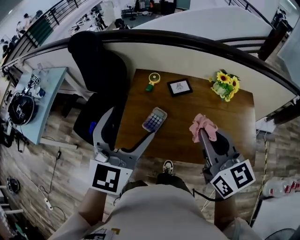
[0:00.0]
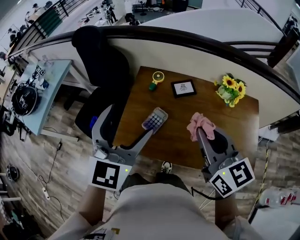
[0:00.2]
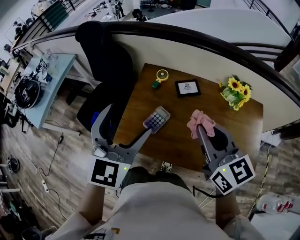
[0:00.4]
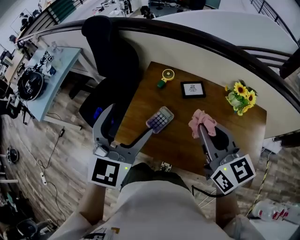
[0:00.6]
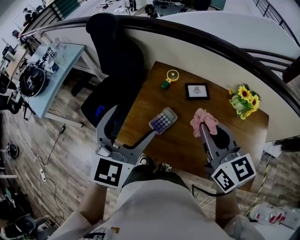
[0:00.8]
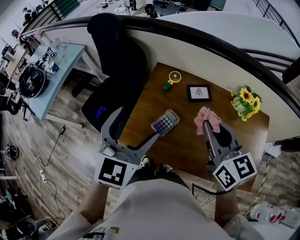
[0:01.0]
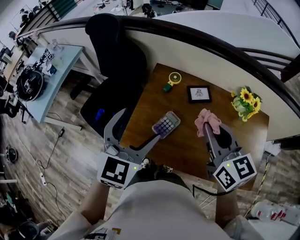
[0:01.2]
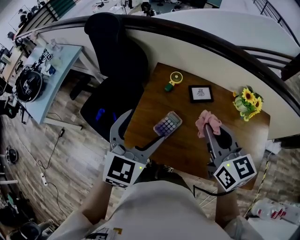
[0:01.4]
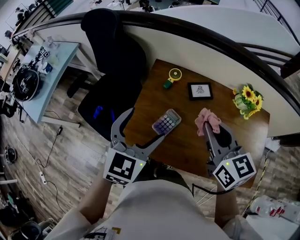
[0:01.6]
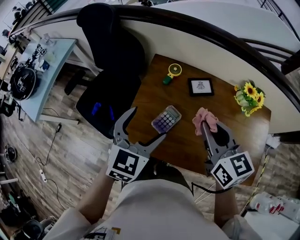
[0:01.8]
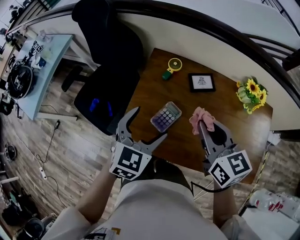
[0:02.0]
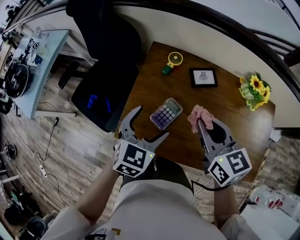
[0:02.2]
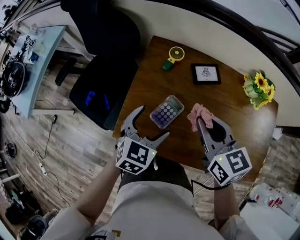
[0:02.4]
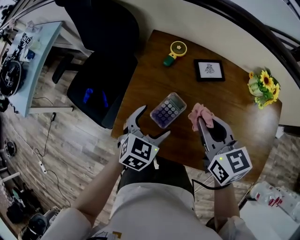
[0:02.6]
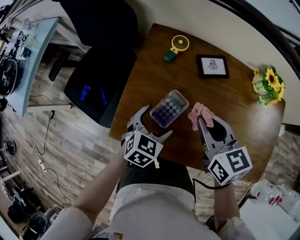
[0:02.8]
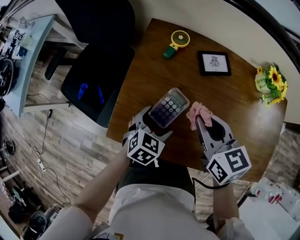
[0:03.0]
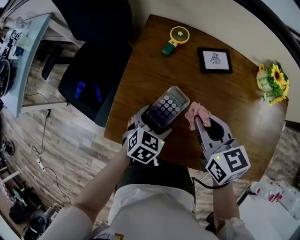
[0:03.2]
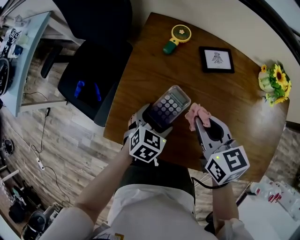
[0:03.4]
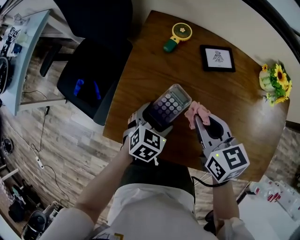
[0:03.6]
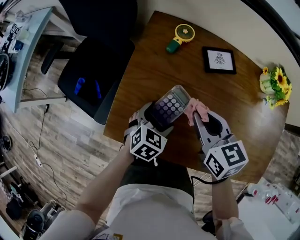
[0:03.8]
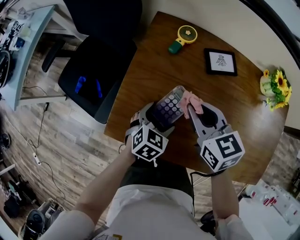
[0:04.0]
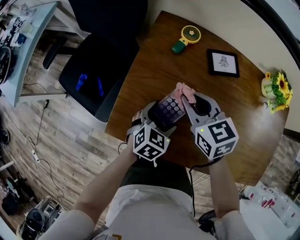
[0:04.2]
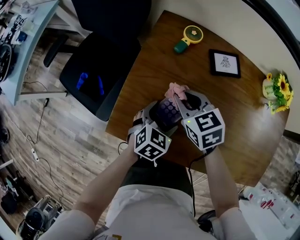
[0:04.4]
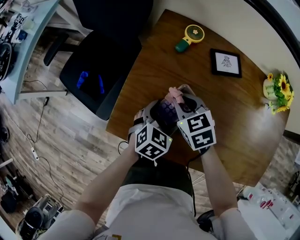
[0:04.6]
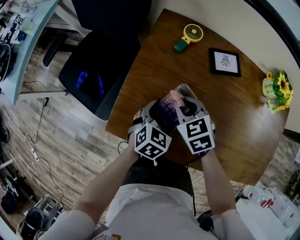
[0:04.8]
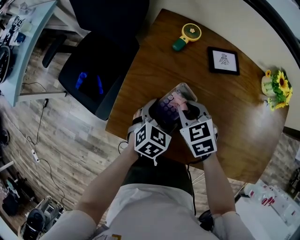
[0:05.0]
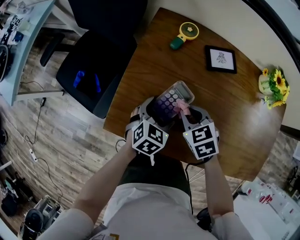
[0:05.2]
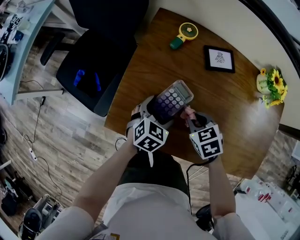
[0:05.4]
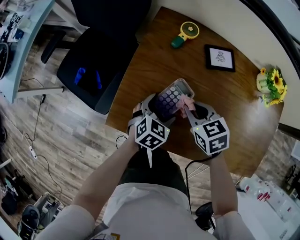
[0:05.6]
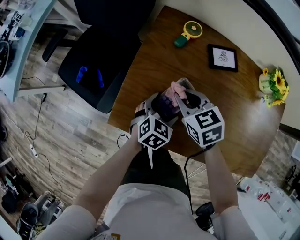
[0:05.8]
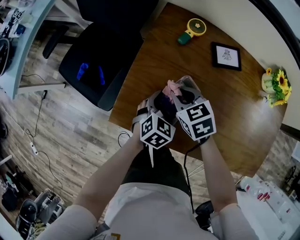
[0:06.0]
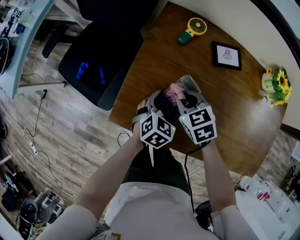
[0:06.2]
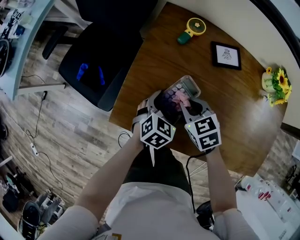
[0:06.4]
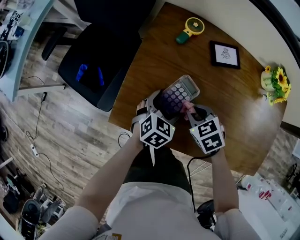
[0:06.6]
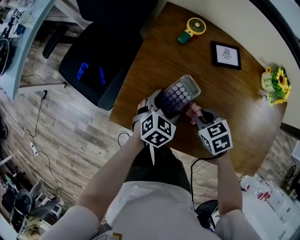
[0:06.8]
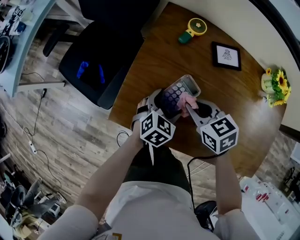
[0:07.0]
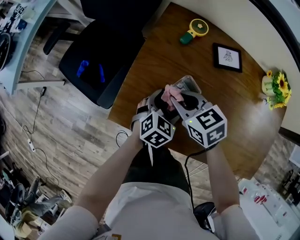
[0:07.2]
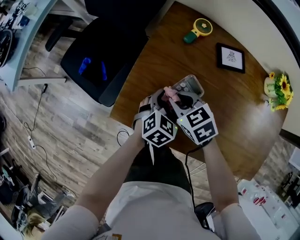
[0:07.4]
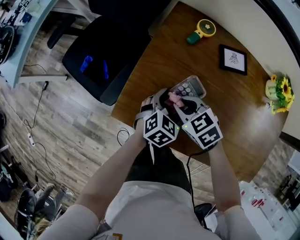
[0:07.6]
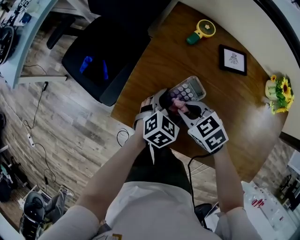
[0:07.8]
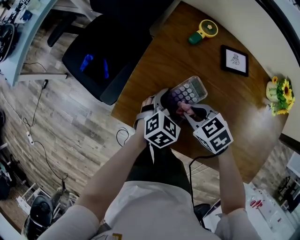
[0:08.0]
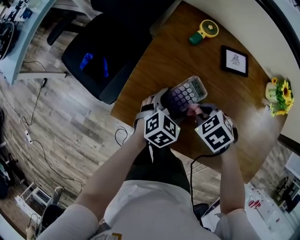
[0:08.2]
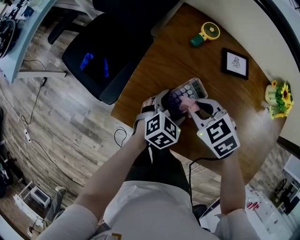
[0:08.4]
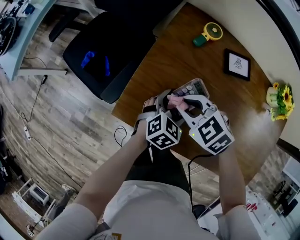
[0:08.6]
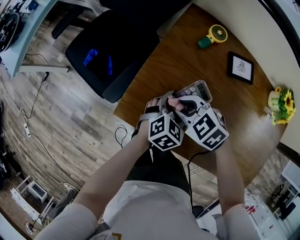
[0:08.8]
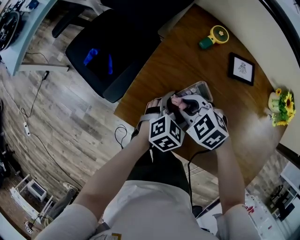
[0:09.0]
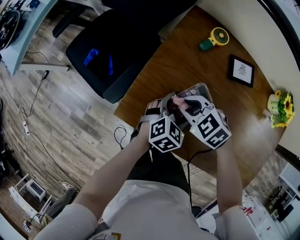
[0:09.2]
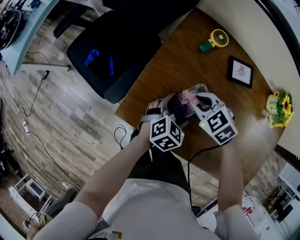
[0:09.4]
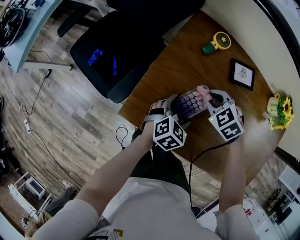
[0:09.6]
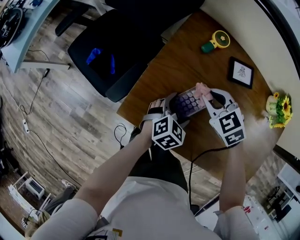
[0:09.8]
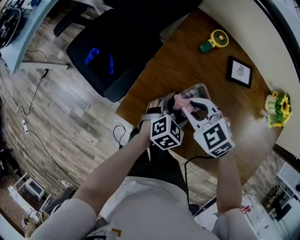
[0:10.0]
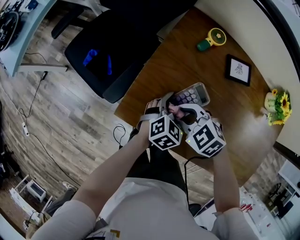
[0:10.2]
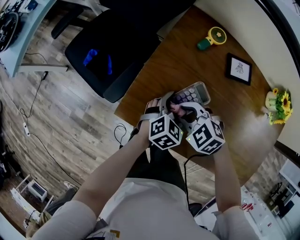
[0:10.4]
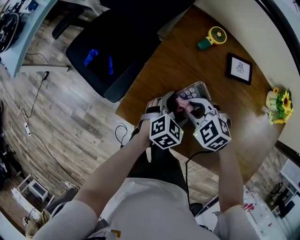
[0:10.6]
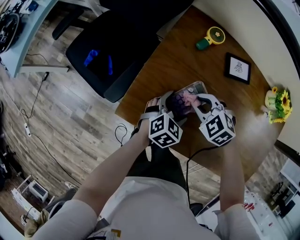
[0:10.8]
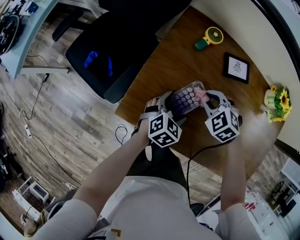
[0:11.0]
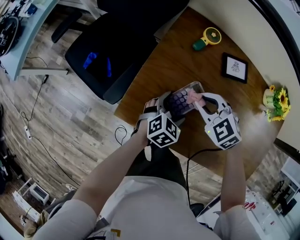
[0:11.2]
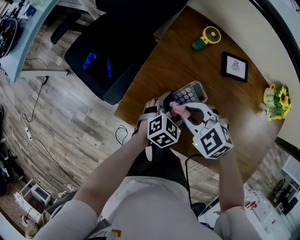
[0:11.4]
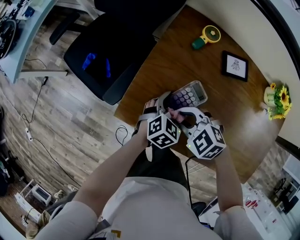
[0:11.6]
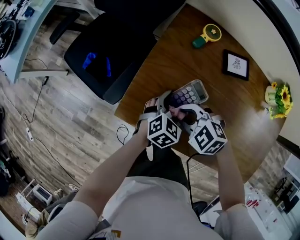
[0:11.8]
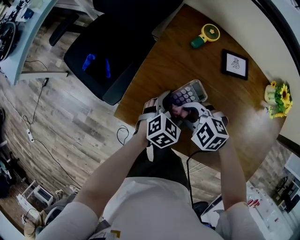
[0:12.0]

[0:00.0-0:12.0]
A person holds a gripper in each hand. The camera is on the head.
0:00.0 to 0:01.6: The left gripper moves downward and forward, roughly 15 cm. The right gripper goes approximately 15 cm forward and downward.
0:01.6 to 0:03.0: The left gripper travels downward by approximately 35 cm, and swivels approximately 30 degrees; the right gripper travels downward by approximately 20 cm.
0:03.0 to 0:04.4: The right gripper moves downward and to the left, about 15 cm, and rotates approximately 20 degrees.
0:04.4 to 0:06.0: The right gripper travels to the right and back again, approximately 10 cm each way.
0:06.0 to 0:07.6: The right gripper heads backward, covering roughly 5 cm, and reaches some 10 cm to the right, then returns.
0:07.6 to 0:09.0: The right gripper changes its angle by roughly 20 degrees.
0:09.0 to 0:10.4: The right gripper reaches roughly 10 cm to the right, then returns.
0:10.4 to 0:12.0: The right gripper reaches about 10 cm to the right, then returns.

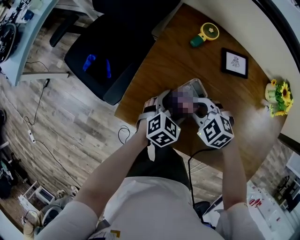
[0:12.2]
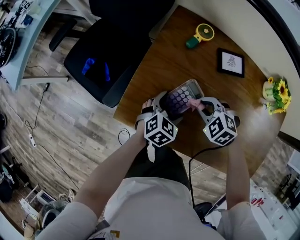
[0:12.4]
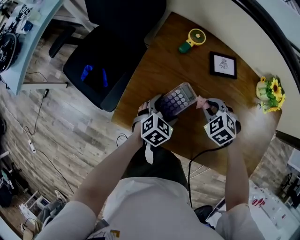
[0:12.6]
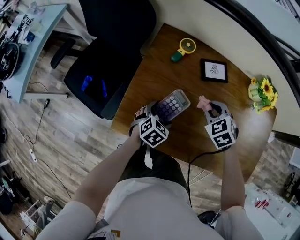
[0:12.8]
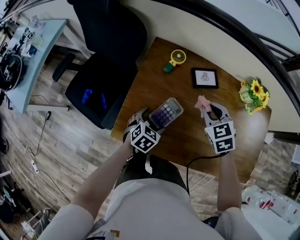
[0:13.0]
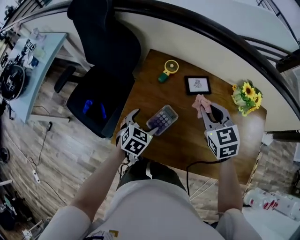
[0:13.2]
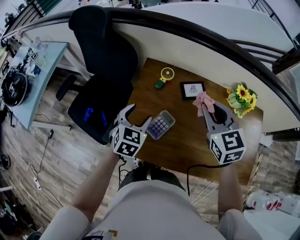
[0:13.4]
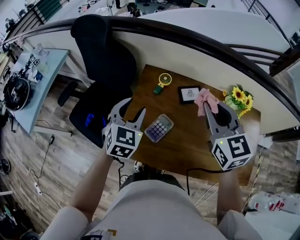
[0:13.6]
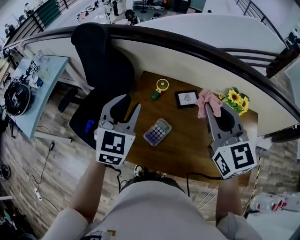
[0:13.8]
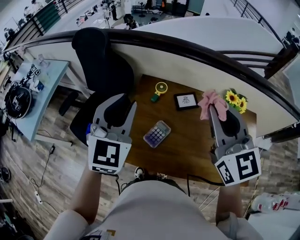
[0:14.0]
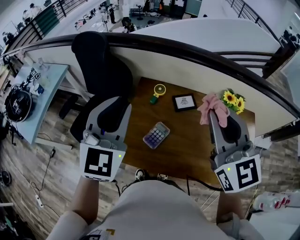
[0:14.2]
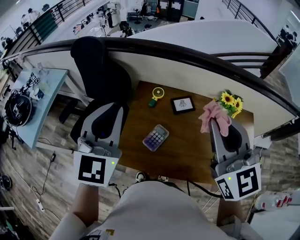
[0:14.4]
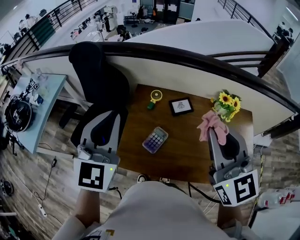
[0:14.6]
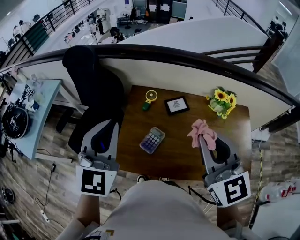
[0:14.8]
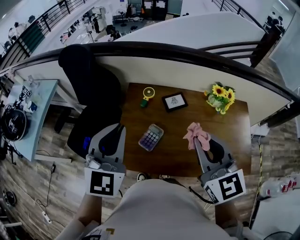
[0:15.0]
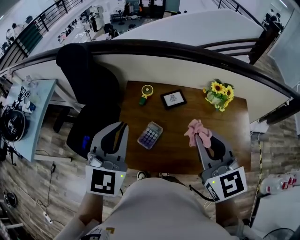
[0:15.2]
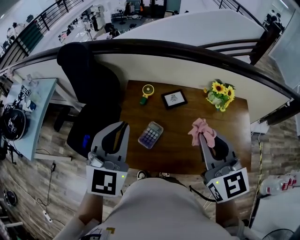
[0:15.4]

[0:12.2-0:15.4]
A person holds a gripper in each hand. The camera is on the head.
0:12.2 to 0:13.8: The grippers both shift upward by approximately 40 cm. The right gripper points its fingers approximately 50 degrees further upward, while the left gripper rotates about 40 degrees, and closes up.
0:13.8 to 0:15.4: The right gripper shifts about 10 cm backward; the left gripper moves backward and upward, some 10 cm.

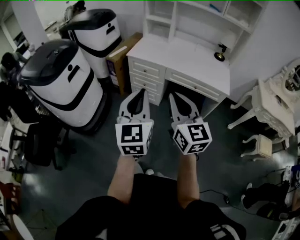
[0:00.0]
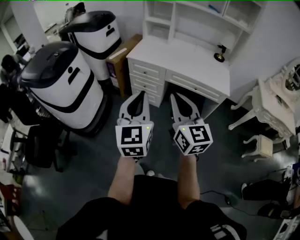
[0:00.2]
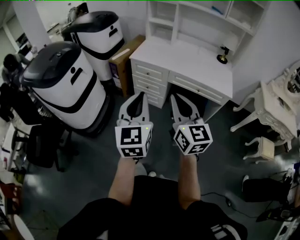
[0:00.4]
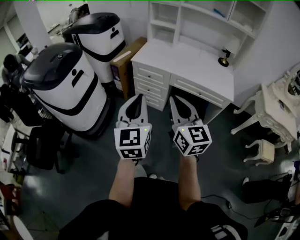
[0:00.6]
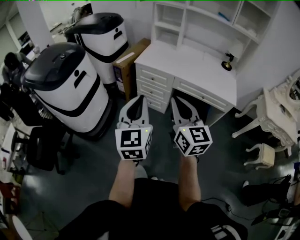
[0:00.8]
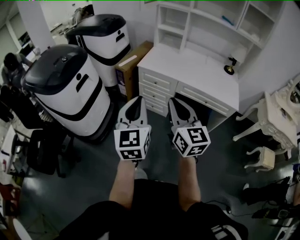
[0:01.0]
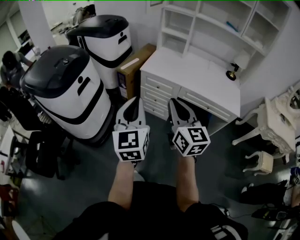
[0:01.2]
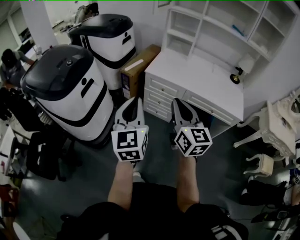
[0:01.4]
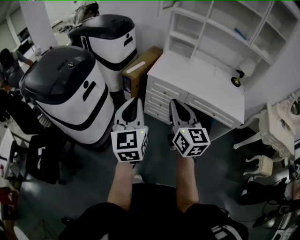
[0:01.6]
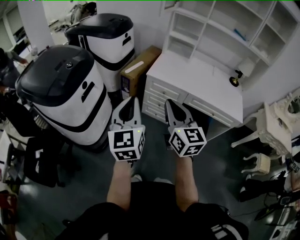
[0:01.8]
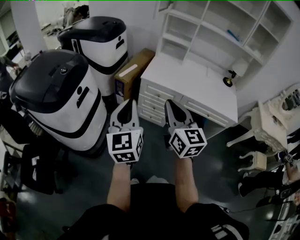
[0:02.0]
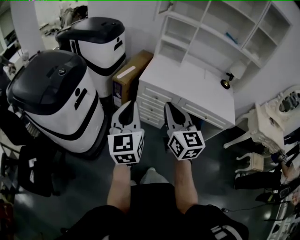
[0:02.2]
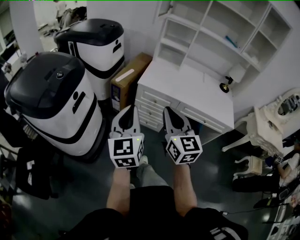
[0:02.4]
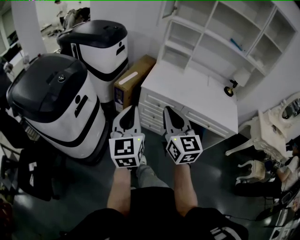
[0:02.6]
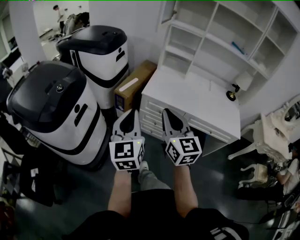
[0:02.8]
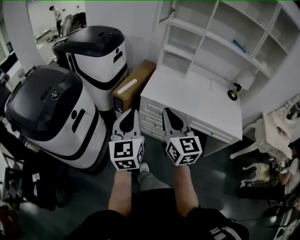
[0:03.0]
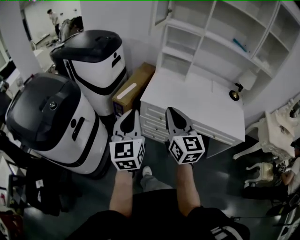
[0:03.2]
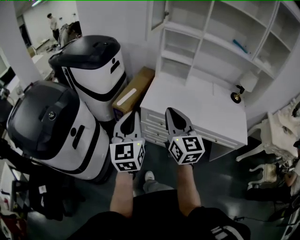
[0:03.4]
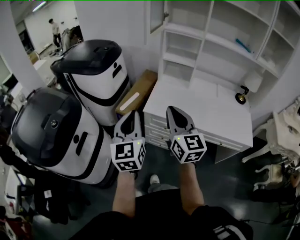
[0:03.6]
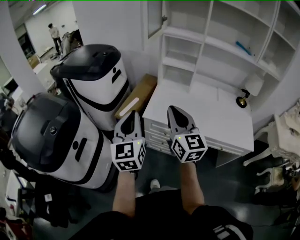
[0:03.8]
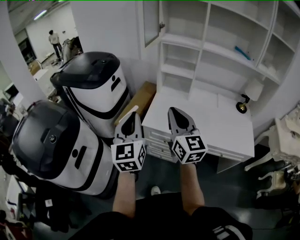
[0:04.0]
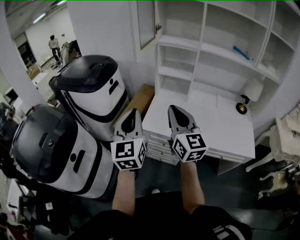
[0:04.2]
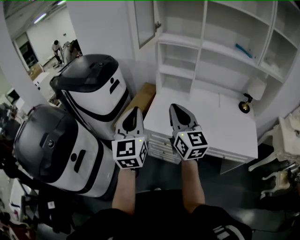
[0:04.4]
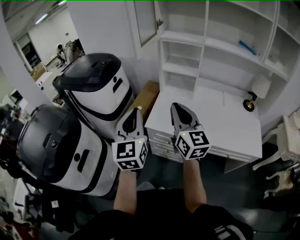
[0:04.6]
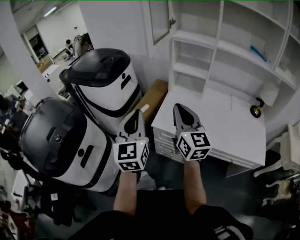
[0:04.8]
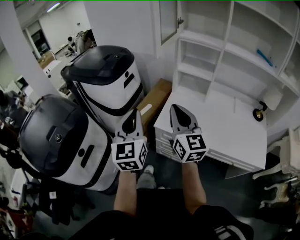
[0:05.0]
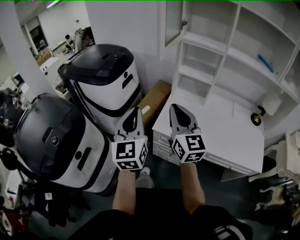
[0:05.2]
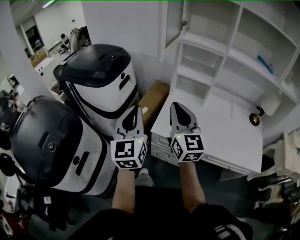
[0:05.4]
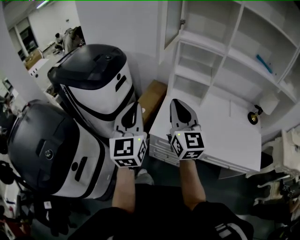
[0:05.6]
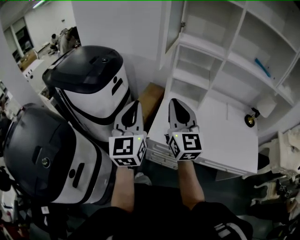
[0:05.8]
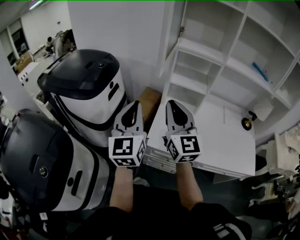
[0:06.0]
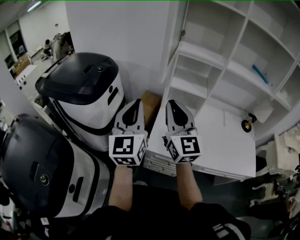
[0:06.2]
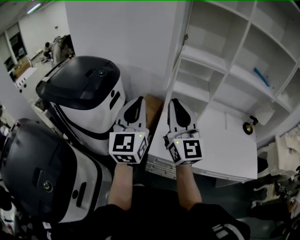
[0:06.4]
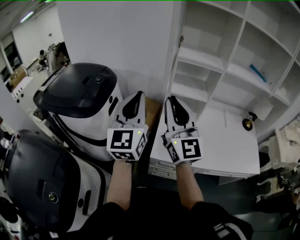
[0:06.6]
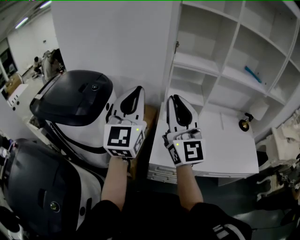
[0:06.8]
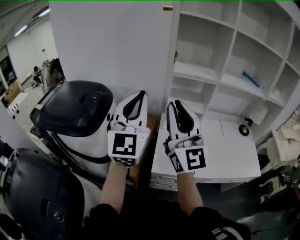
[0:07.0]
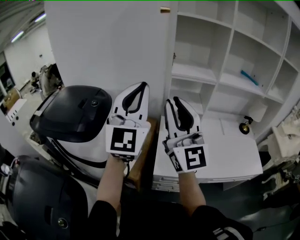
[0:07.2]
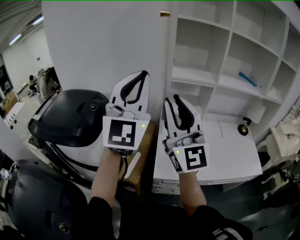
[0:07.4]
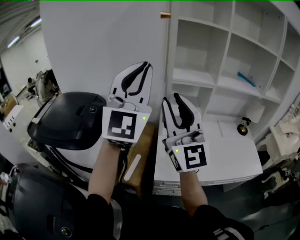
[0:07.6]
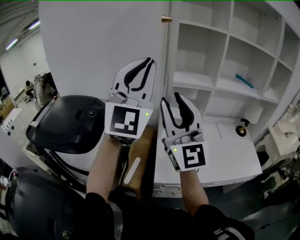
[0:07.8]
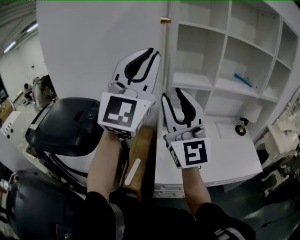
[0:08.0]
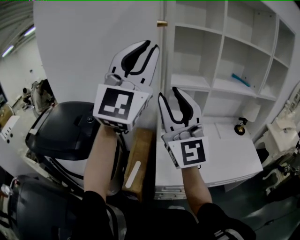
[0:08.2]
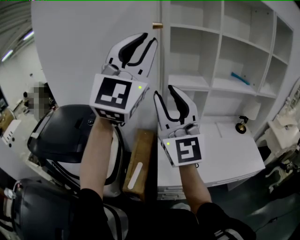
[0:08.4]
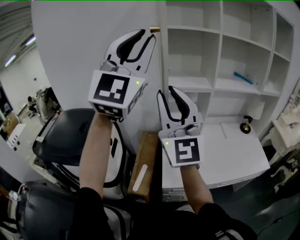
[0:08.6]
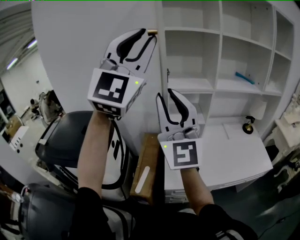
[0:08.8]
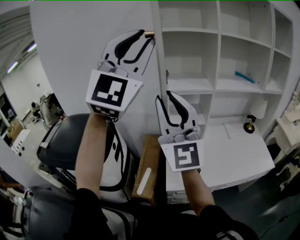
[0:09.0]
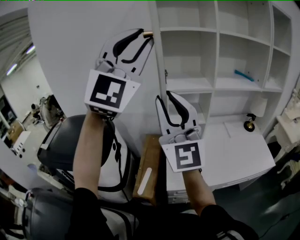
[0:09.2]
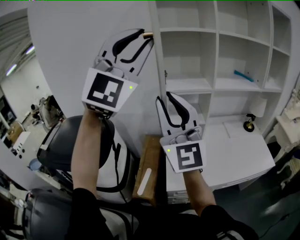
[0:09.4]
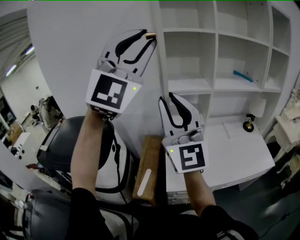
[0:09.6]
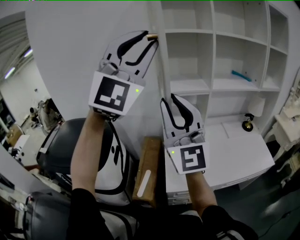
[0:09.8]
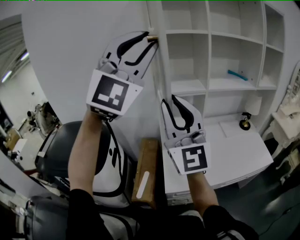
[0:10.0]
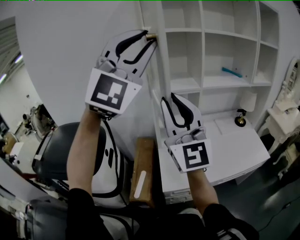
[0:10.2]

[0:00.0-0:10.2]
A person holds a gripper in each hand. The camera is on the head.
0:00.0 to 0:01.4: The right gripper moves forward and to the left, some 20 cm. Meanwhile the left gripper shifts roughly 25 cm to the left and forward.
0:01.4 to 0:03.0: The grippers both shift forward by some 20 cm.
0:03.0 to 0:04.4: The two grippers go roughly 20 cm forward and to the right.
0:04.4 to 0:05.8: Both grippers move forward and to the left, some 15 cm.
0:05.8 to 0:07.2: The left gripper is displaced upward and forward by approximately 20 cm, and changes its angle by about 30 degrees; the right gripper shifts about 15 cm upward and to the left, and rotates approximately 20 degrees.
0:07.2 to 0:08.8: The left gripper heads upward, covering about 20 cm, and swivels approximately 30 degrees. Meanwhile the right gripper heads upward, covering approximately 5 cm.
0:08.8 to 0:10.2: The grippers stay close to where they were, moving slightly.
